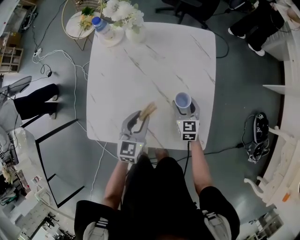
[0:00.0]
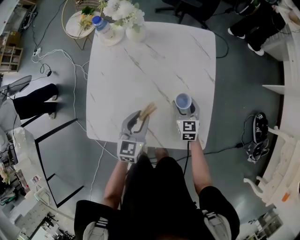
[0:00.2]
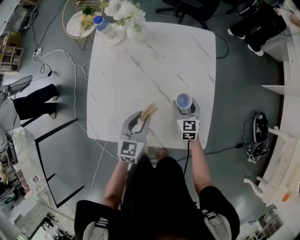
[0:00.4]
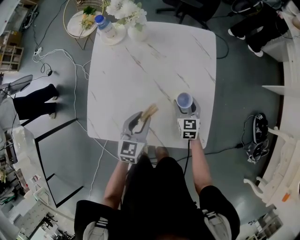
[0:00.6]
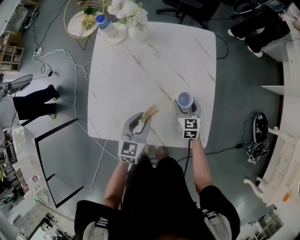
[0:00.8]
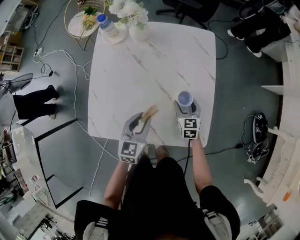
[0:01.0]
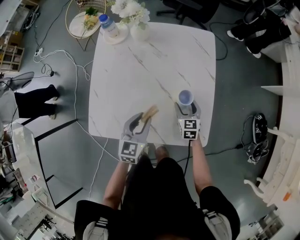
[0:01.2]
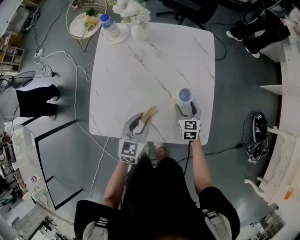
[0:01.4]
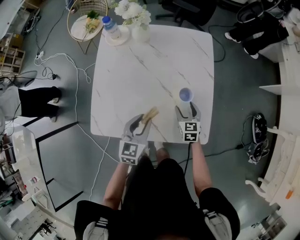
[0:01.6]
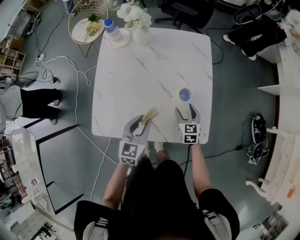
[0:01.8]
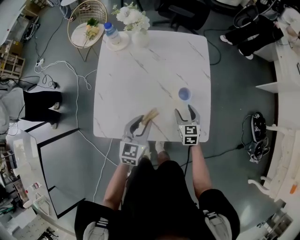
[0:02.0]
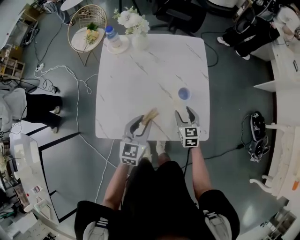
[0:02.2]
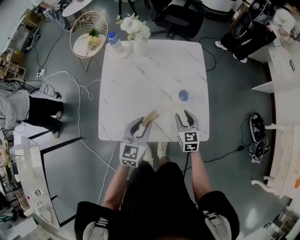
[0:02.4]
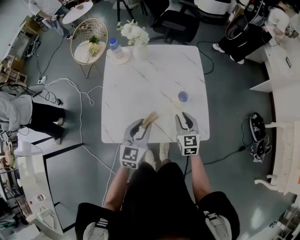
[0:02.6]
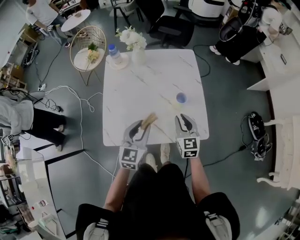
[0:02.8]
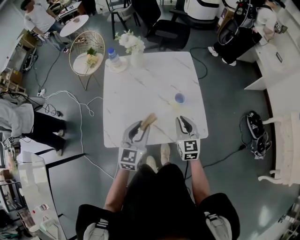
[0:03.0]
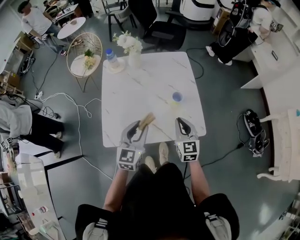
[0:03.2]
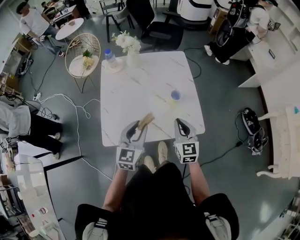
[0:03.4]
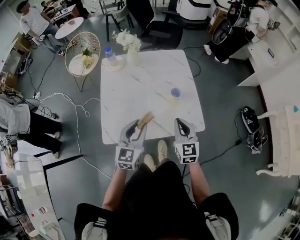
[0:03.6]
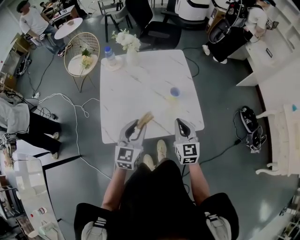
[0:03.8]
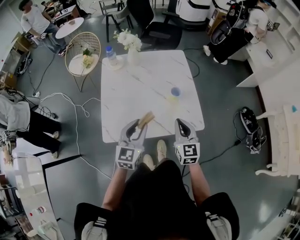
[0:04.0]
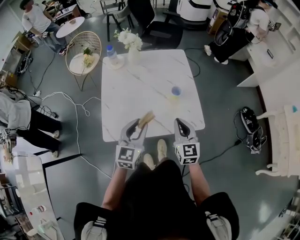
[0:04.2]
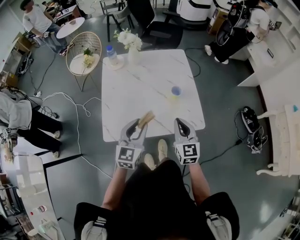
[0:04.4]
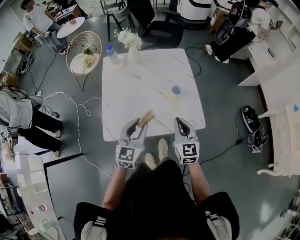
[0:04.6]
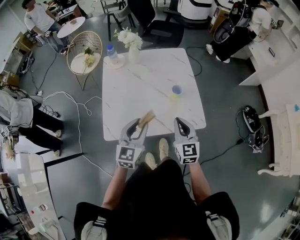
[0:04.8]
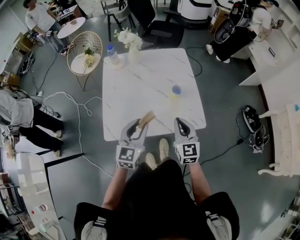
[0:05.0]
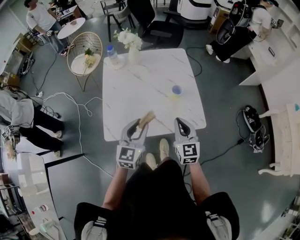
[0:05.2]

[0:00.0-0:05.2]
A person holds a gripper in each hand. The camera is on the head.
0:00.0 to 0:01.8: The two grippers go about 5 cm backward.
0:01.8 to 0:03.4: The left gripper travels upward and backward by about 15 cm. Meanwhile the right gripper shifts approximately 25 cm upward and backward, changes its angle by roughly 20 degrees, and closes its fingers.
0:03.4 to 0:05.2: The grippers make only small movements.

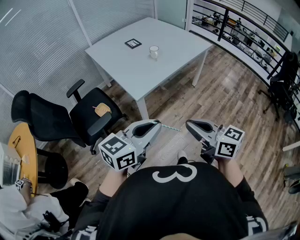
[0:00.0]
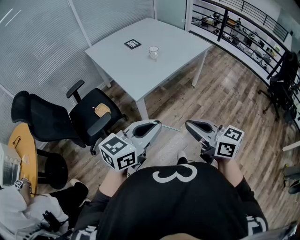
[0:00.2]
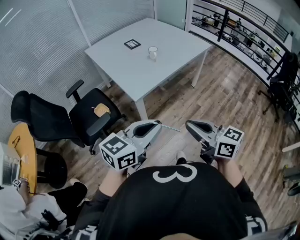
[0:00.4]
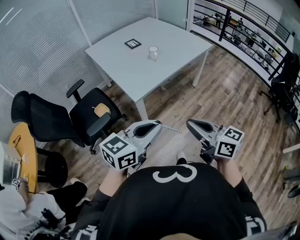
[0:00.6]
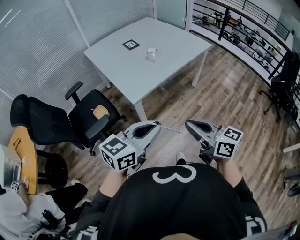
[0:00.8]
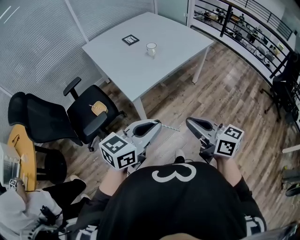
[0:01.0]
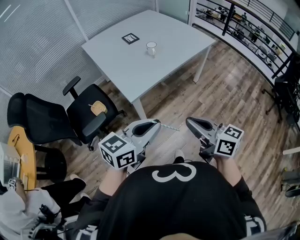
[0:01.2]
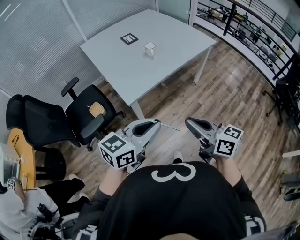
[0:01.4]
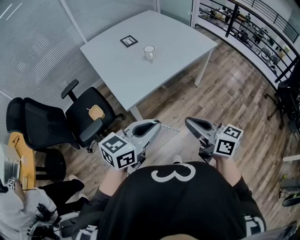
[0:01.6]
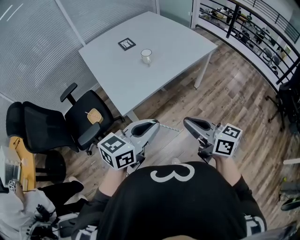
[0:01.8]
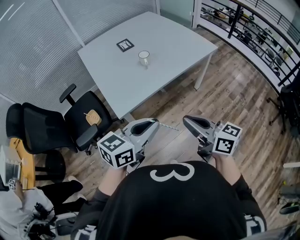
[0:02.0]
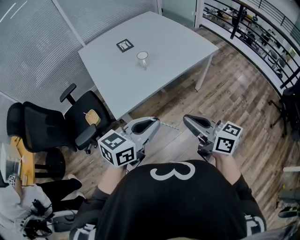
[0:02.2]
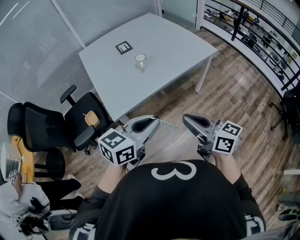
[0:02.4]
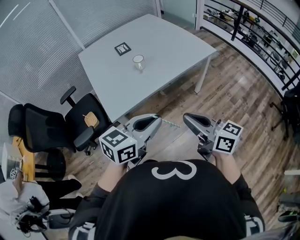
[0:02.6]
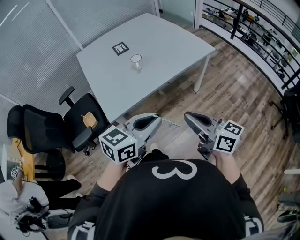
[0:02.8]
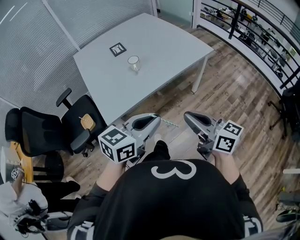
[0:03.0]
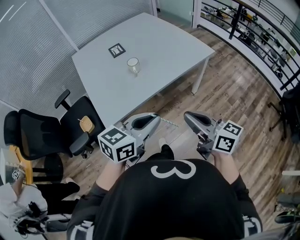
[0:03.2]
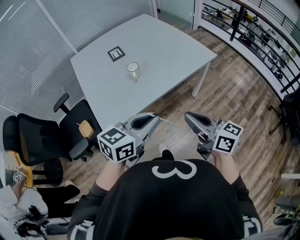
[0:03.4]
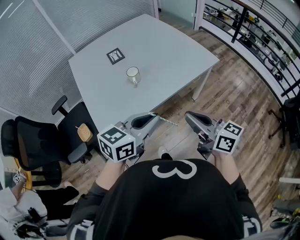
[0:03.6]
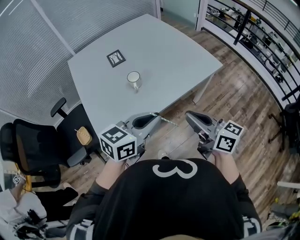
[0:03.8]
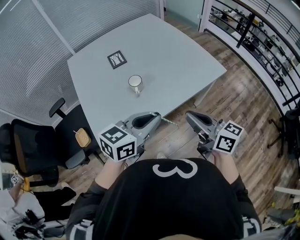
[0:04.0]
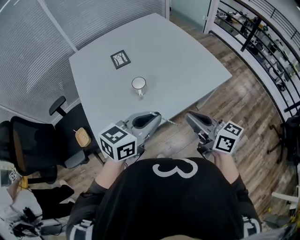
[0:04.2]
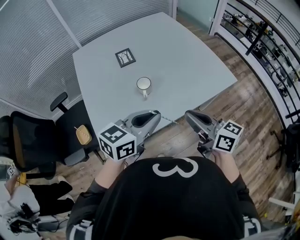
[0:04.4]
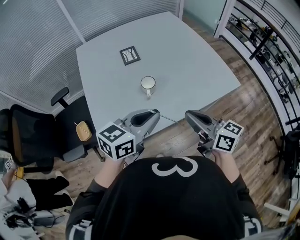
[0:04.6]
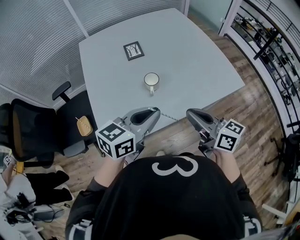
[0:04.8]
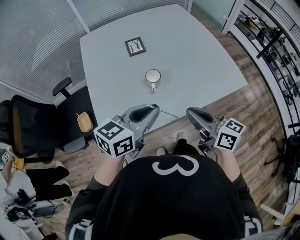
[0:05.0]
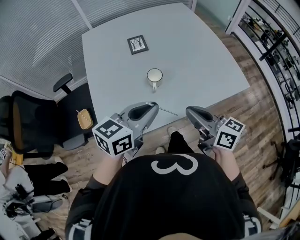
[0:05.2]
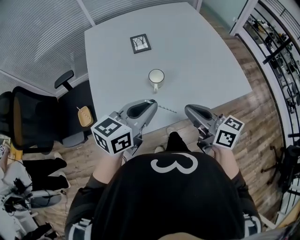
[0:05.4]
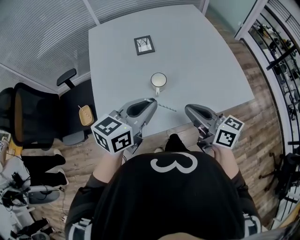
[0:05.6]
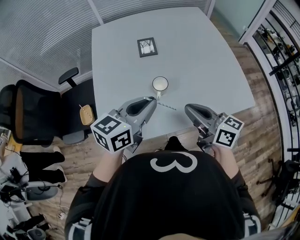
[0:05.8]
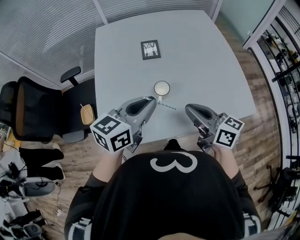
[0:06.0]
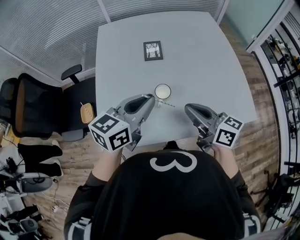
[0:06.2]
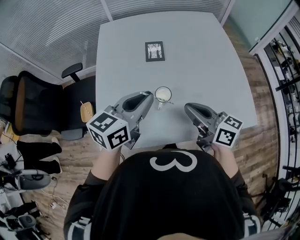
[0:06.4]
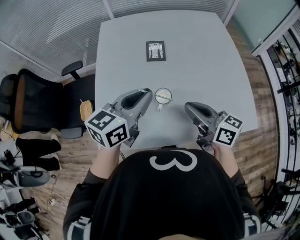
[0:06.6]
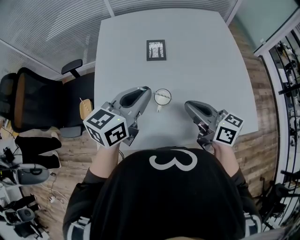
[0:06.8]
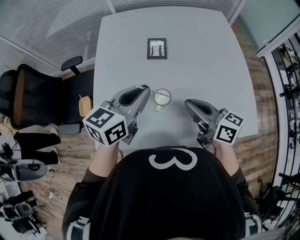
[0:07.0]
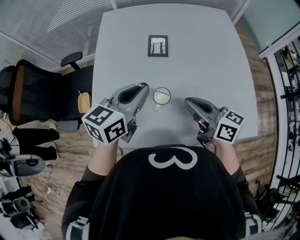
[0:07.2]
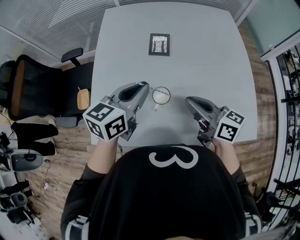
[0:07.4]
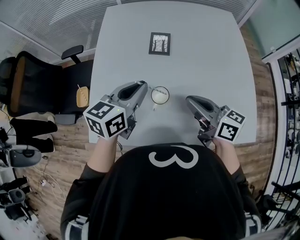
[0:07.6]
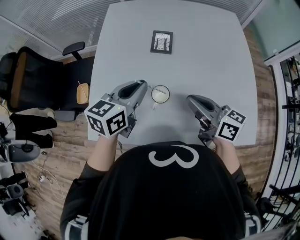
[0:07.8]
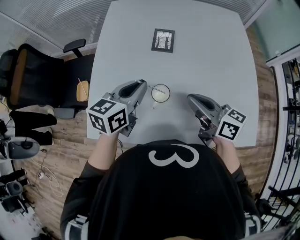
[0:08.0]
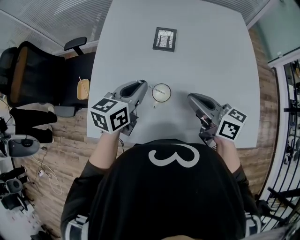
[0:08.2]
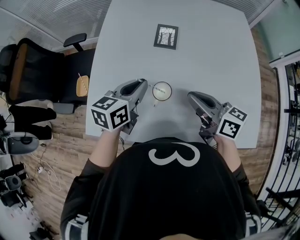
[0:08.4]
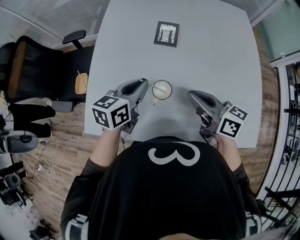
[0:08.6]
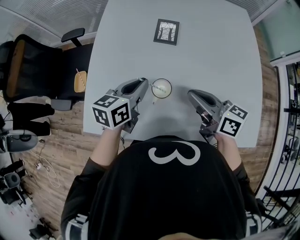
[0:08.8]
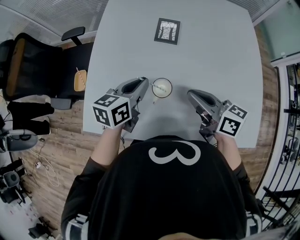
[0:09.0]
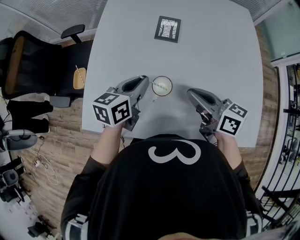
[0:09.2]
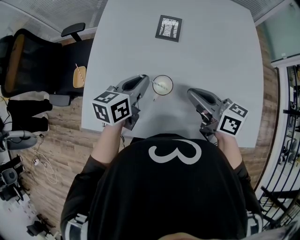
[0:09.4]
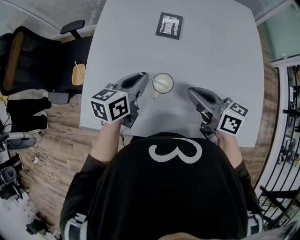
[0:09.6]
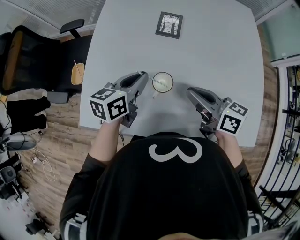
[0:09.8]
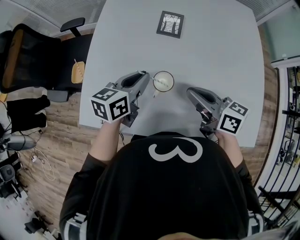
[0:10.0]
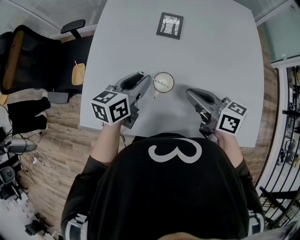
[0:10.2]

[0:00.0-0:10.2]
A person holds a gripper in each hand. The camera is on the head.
0:00.0 to 0:01.4: The grippers both shift forward and to the right by roughly 10 cm.
0:01.4 to 0:03.0: The two grippers go some 20 cm to the right and forward.
0:03.0 to 0:04.4: Both grippers move forward, roughly 25 cm.
0:04.4 to 0:05.8: The left gripper goes some 10 cm forward and to the left. Meanwhile the right gripper moves forward, some 10 cm.
0:05.8 to 0:07.2: Both grippers move forward, approximately 15 cm.
0:07.2 to 0:08.8: The left gripper is displaced downward by about 10 cm, while the right gripper ends up some 5 cm from where it was.
0:08.8 to 0:10.2: The grippers move only a little.

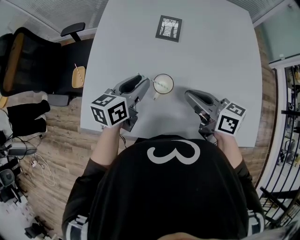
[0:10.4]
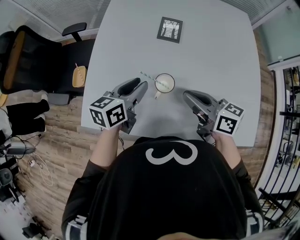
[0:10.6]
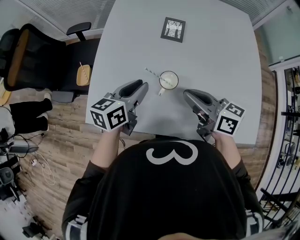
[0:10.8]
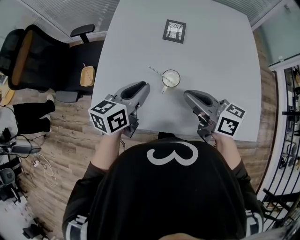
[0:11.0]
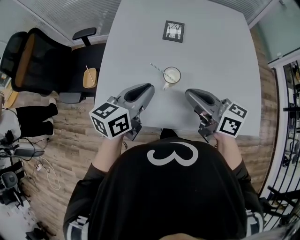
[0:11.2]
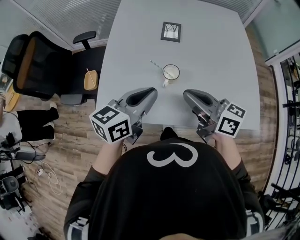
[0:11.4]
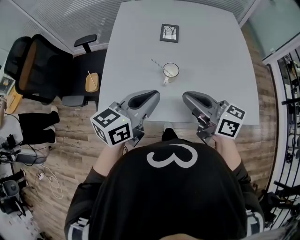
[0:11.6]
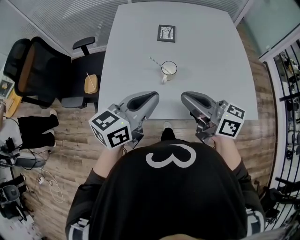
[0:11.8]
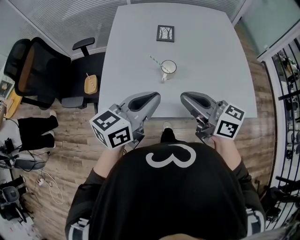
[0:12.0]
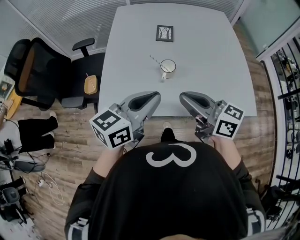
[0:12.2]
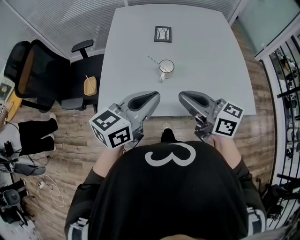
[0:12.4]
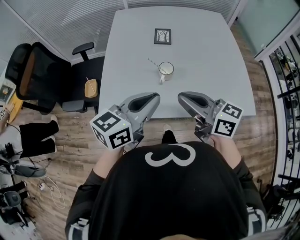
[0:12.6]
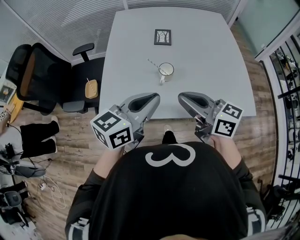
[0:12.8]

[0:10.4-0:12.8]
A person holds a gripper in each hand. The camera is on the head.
0:10.4 to 0:11.6: The left gripper heads backward and upward, covering roughly 20 cm, and closes; the right gripper moves backward, upward and to the left, roughly 20 cm.
0:11.6 to 0:12.8: The grippers stay close to where they were, moving slightly.

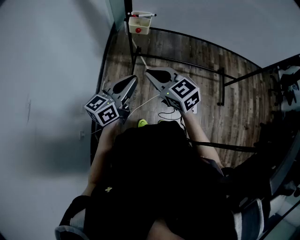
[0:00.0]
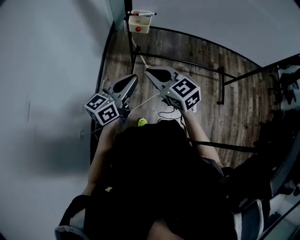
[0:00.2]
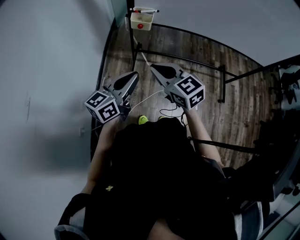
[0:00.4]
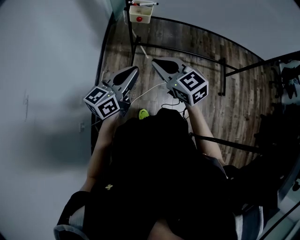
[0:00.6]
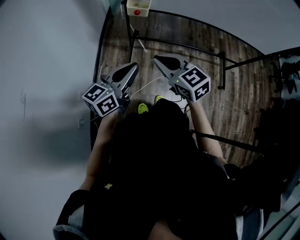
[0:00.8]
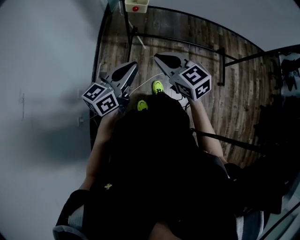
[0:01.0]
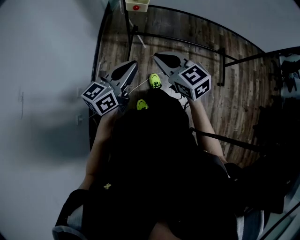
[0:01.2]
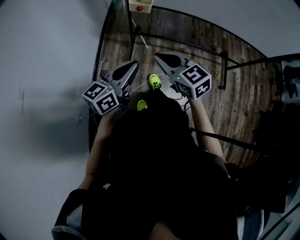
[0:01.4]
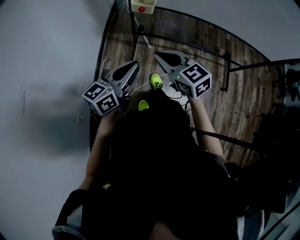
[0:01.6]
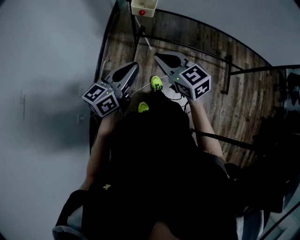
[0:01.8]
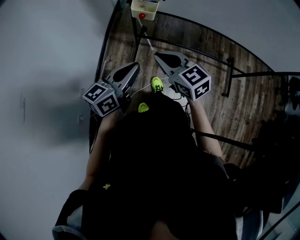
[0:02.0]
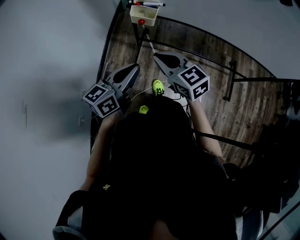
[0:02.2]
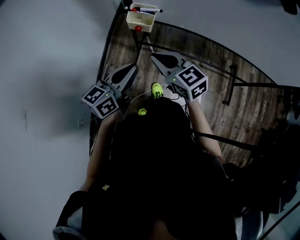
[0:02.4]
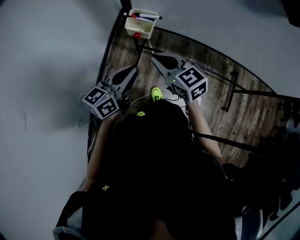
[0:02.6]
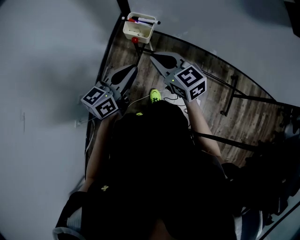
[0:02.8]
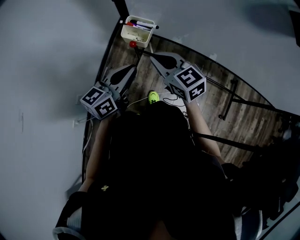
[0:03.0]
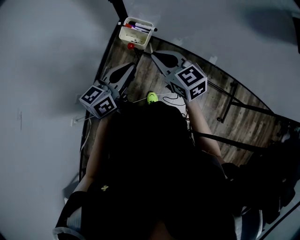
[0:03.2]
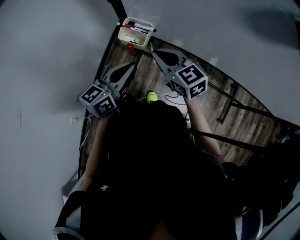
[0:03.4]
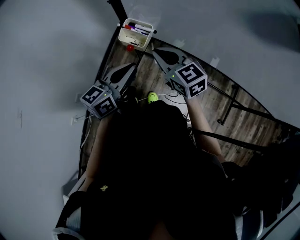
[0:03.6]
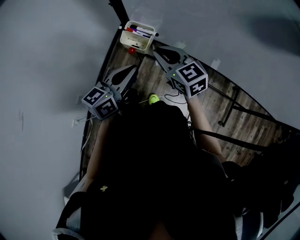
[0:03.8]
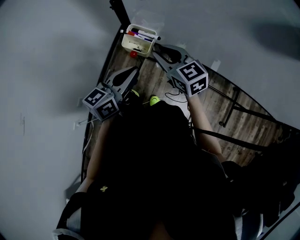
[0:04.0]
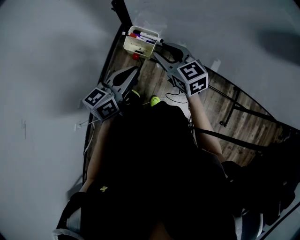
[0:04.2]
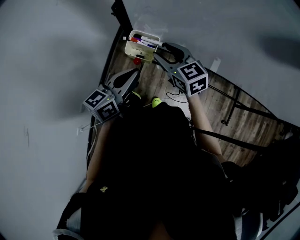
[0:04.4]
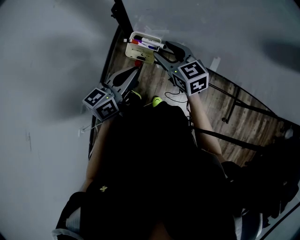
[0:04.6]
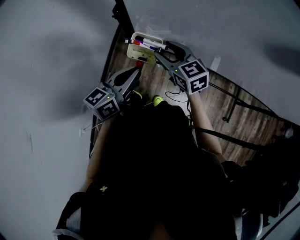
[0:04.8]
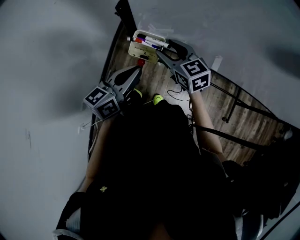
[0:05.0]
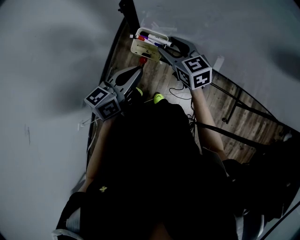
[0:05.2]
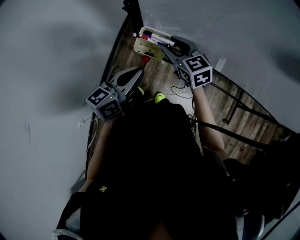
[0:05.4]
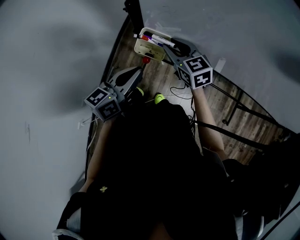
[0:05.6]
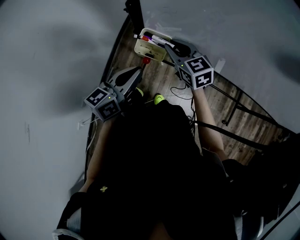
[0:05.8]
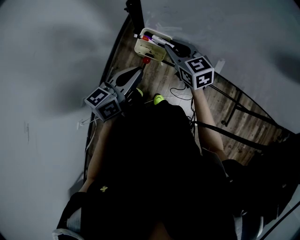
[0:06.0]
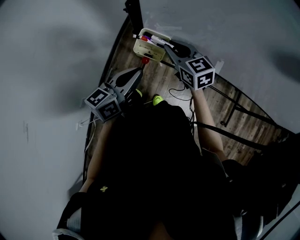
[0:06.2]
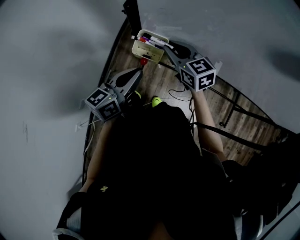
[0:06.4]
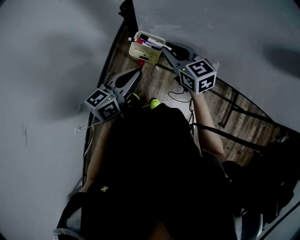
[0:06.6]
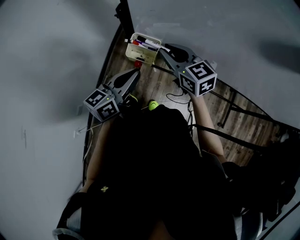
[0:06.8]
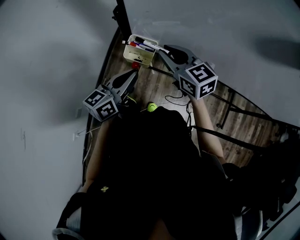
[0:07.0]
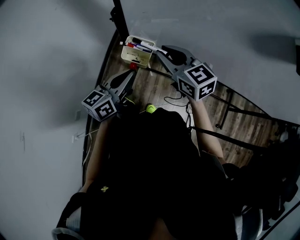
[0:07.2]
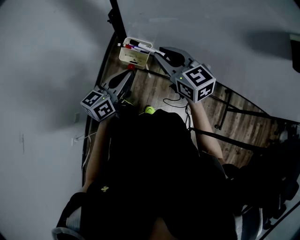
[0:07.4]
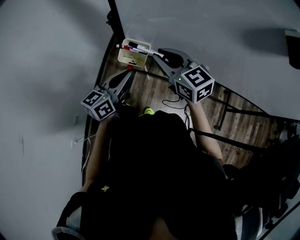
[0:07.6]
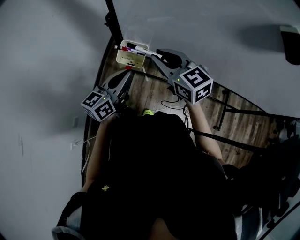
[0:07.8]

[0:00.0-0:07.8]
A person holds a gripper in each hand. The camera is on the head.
0:00.0 to 0:01.6: The grippers stay close to where they were, moving slightly.
0:01.6 to 0:03.2: Both grippers travel together forward, roughly 25 cm.
0:03.2 to 0:04.6: The right gripper heads forward, covering roughly 10 cm, and opens.
0:04.6 to 0:06.2: The right gripper closes.
0:06.2 to 0:07.8: The right gripper shifts roughly 10 cm upward and backward.
